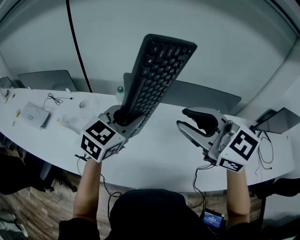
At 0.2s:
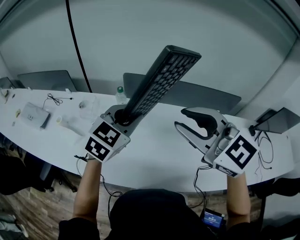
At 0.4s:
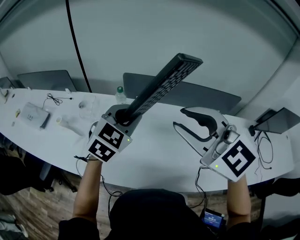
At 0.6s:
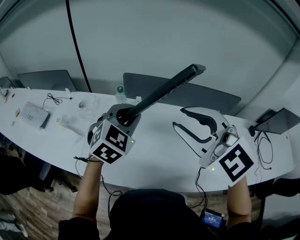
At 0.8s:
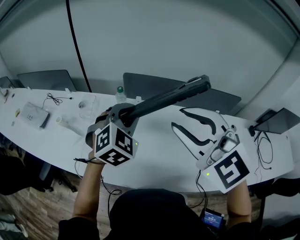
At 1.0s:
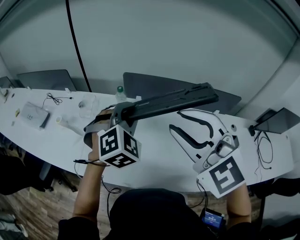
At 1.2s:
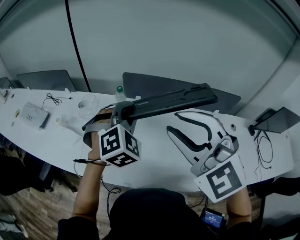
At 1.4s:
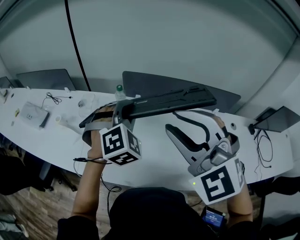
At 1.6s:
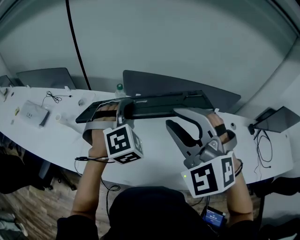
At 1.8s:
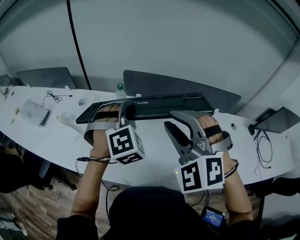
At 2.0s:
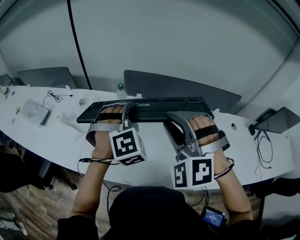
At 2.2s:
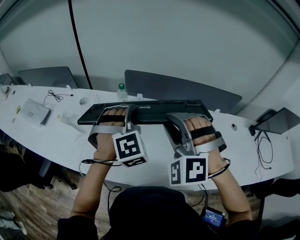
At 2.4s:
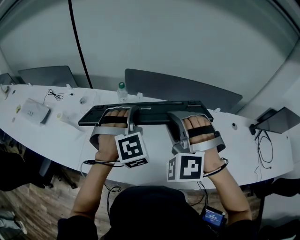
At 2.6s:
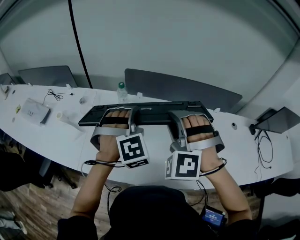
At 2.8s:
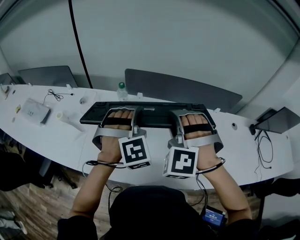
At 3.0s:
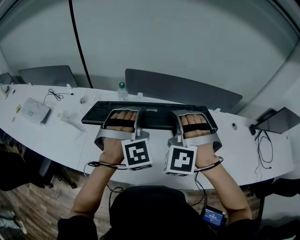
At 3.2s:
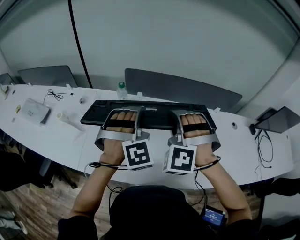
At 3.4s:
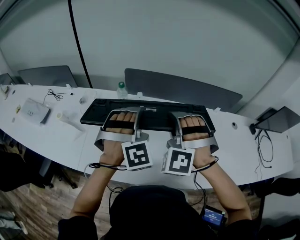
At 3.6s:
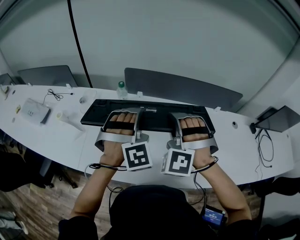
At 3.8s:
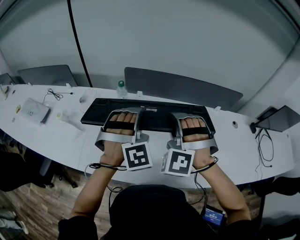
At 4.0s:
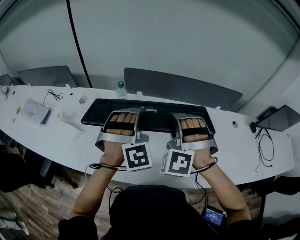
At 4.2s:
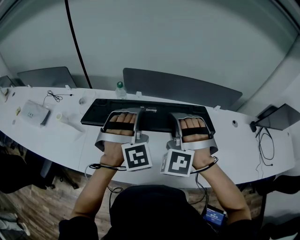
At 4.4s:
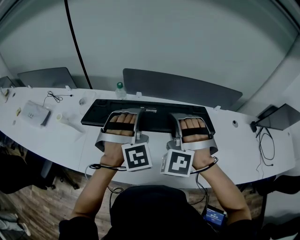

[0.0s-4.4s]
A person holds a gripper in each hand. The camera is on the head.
0.0s to 1.4s: The right gripper turns by about 40 degrees, while the left gripper swivels some 50 degrees.
1.4s to 3.0s: The right gripper heads downward and forward, covering roughly 15 cm, and swivels roughly 40 degrees.
3.0s to 4.4s: The grippers make only small movements.

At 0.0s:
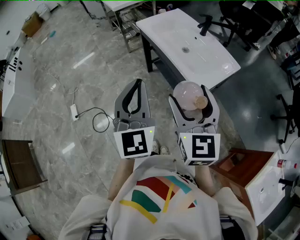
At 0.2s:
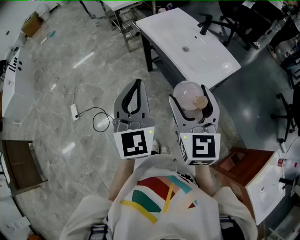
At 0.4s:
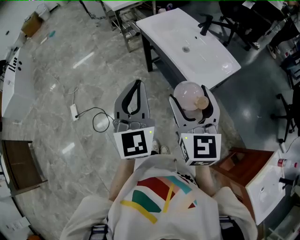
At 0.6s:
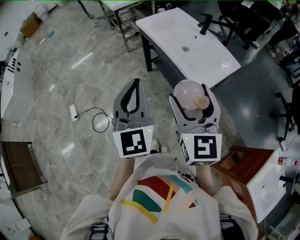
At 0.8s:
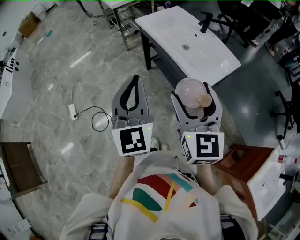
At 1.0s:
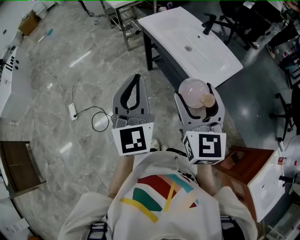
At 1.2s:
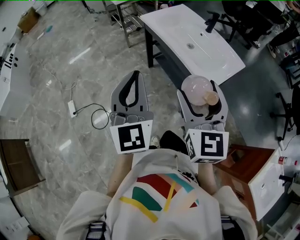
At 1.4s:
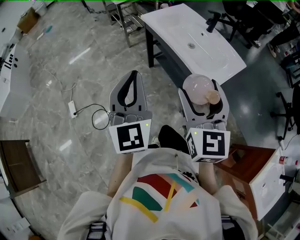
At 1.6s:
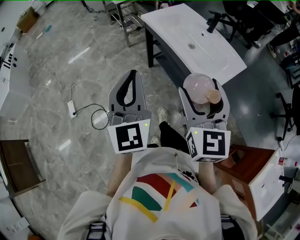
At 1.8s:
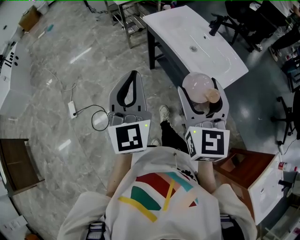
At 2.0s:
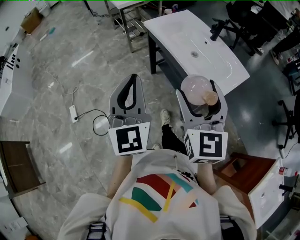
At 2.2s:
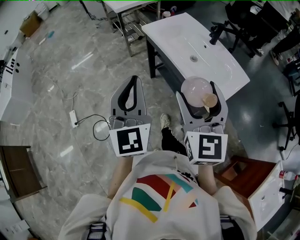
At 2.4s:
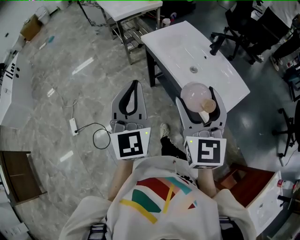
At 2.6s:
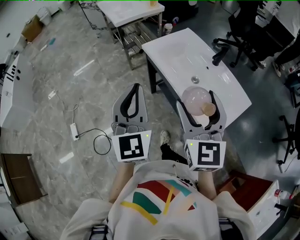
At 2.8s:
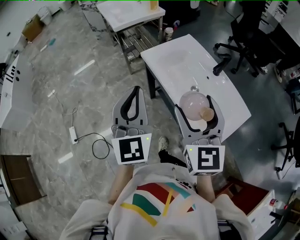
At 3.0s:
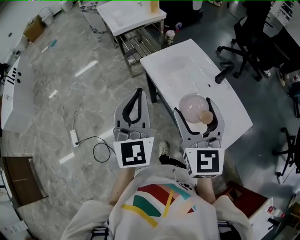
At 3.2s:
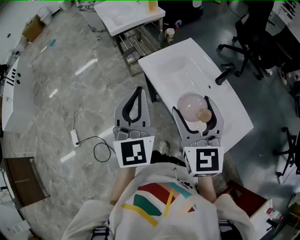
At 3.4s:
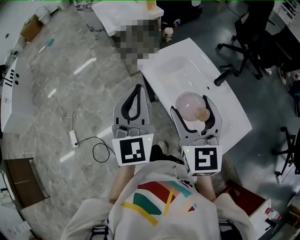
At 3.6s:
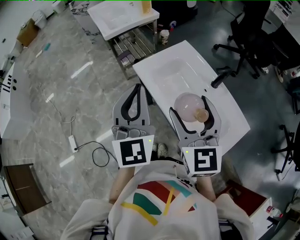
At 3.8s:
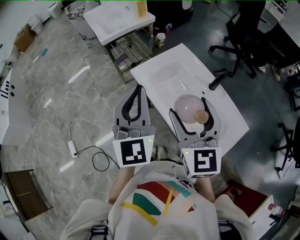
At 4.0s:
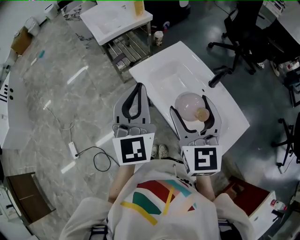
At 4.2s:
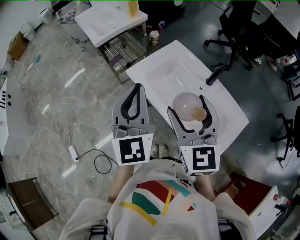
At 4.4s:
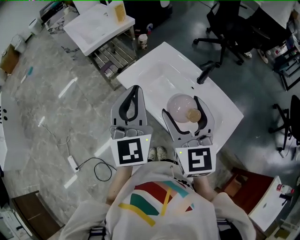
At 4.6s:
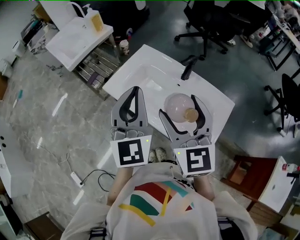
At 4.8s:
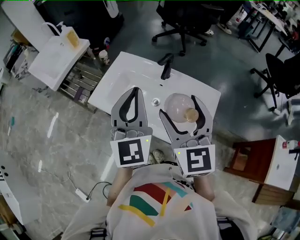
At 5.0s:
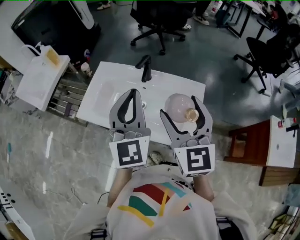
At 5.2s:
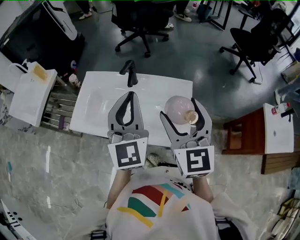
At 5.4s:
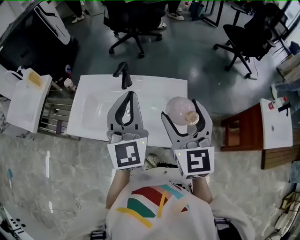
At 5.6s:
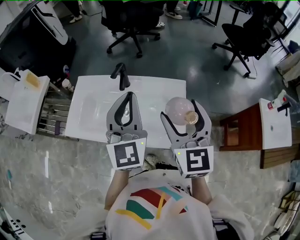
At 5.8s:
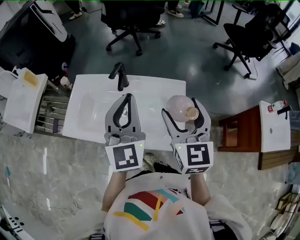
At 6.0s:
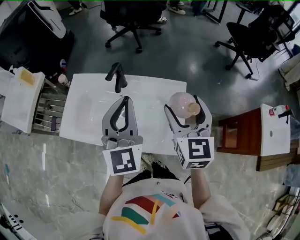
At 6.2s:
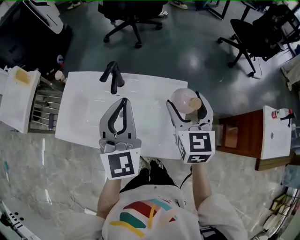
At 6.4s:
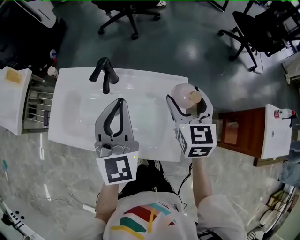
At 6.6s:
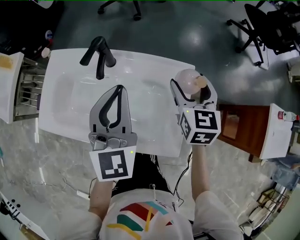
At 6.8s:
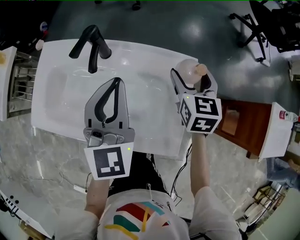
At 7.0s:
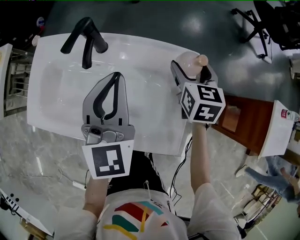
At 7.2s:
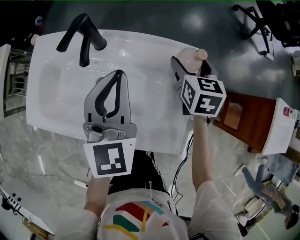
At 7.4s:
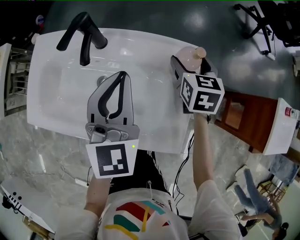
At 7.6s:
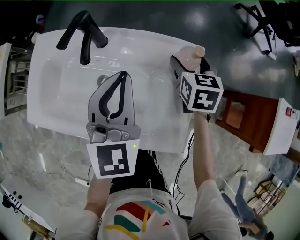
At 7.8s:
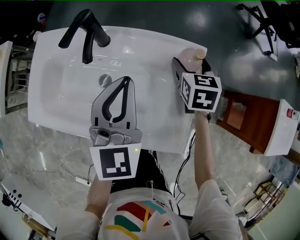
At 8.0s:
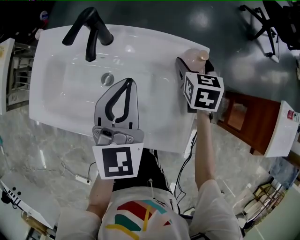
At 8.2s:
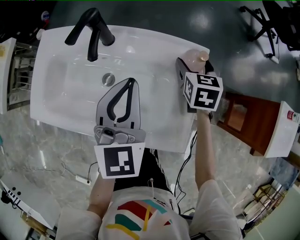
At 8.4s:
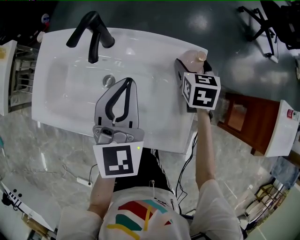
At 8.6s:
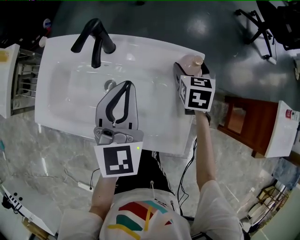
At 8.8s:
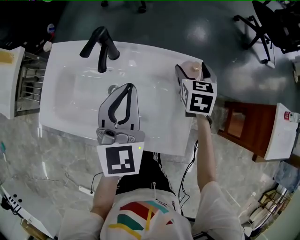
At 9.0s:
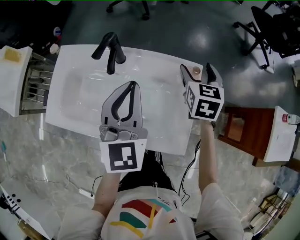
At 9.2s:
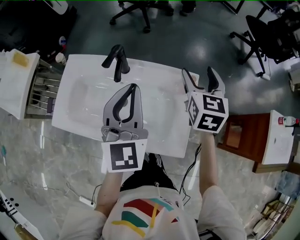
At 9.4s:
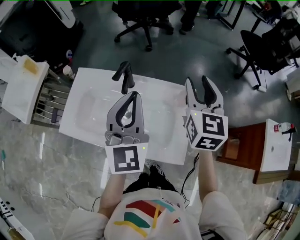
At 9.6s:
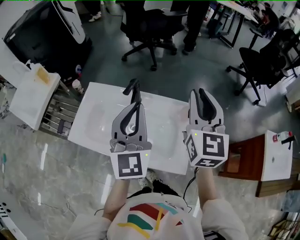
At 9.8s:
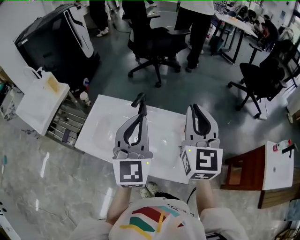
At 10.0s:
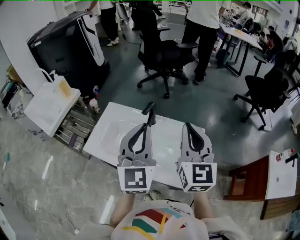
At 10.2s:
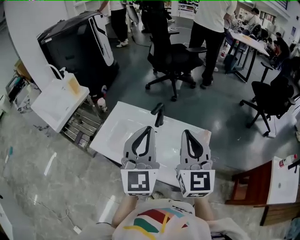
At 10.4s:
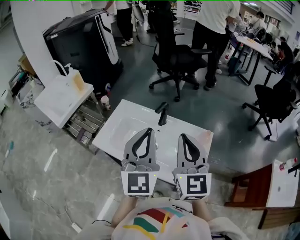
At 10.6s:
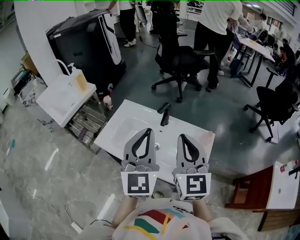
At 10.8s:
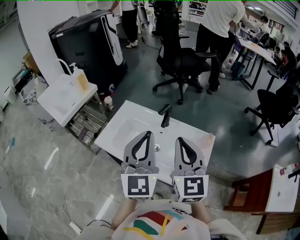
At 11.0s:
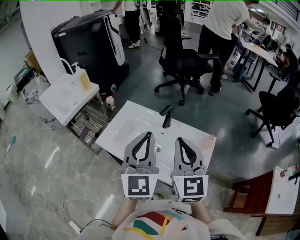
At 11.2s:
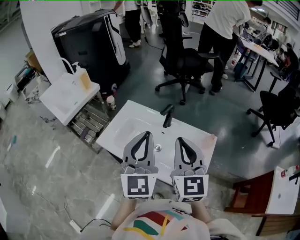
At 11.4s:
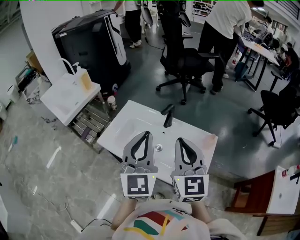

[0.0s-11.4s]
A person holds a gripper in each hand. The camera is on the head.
0.0s to 1.4s: The left gripper heads to the left, covering approximately 5 cm.
1.4s to 2.8s: The grippers both shift forward by some 25 cm.
2.8s to 4.2s: The grippers both shift forward by roughly 10 cm.
4.2s to 5.6s: The right gripper changes place by approximately 20 cm, and changes its angle by about 50 degrees. Meanwhile the left gripper changes place by about 25 cm, and turns by about 40 degrees.
5.6s to 7.2s: The left gripper is displaced downward and forward by roughly 20 cm. The right gripper is displaced downward and forward by approximately 35 cm, and turns by approximately 30 degrees.
7.2s to 8.6s: The grippers move only a little.
8.6s to 10.0s: The left gripper is displaced upward by approximately 20 cm, and changes its angle by roughly 20 degrees. The right gripper shifts about 40 cm upward and backward, tilts its fingers roughly 40 degrees upward, and closes its fingers.
10.0s to 11.4s: The two grippers go approximately 5 cm to the left.

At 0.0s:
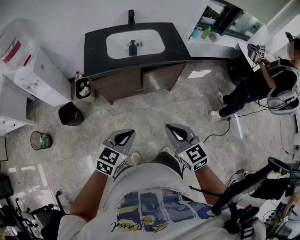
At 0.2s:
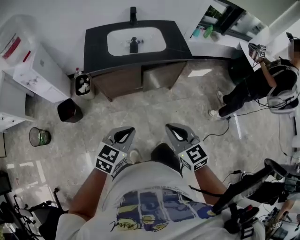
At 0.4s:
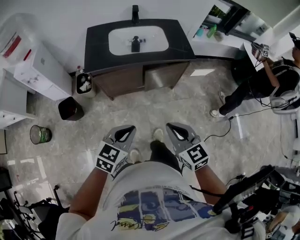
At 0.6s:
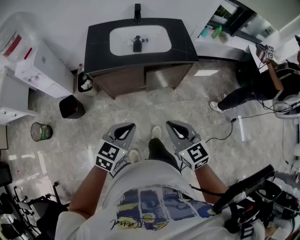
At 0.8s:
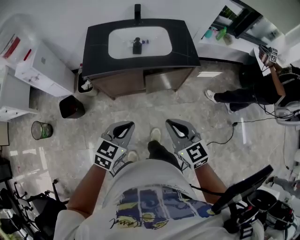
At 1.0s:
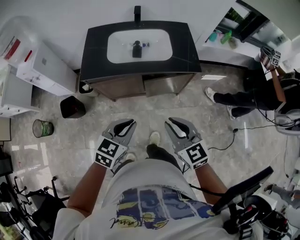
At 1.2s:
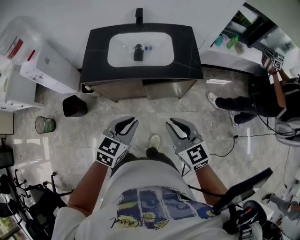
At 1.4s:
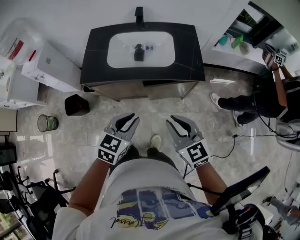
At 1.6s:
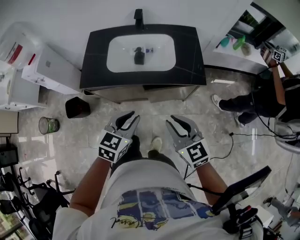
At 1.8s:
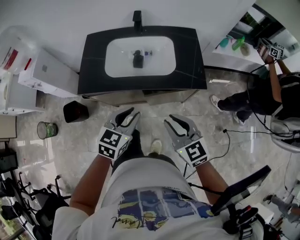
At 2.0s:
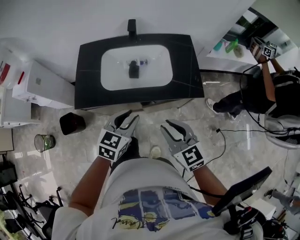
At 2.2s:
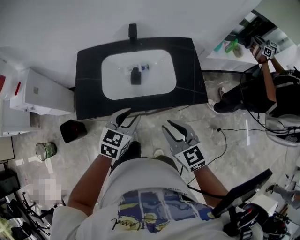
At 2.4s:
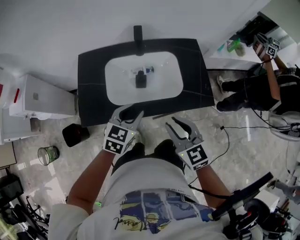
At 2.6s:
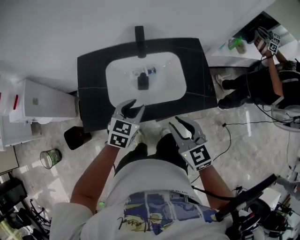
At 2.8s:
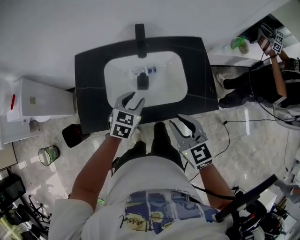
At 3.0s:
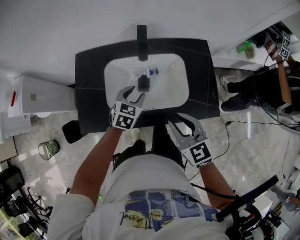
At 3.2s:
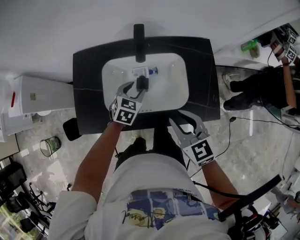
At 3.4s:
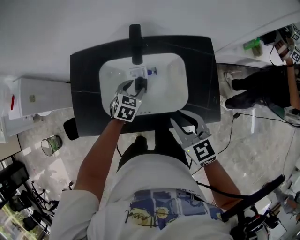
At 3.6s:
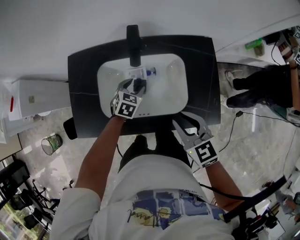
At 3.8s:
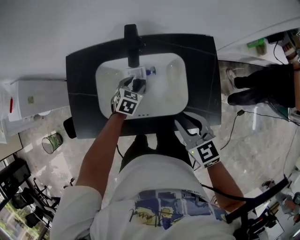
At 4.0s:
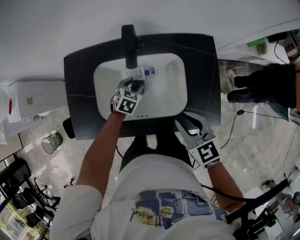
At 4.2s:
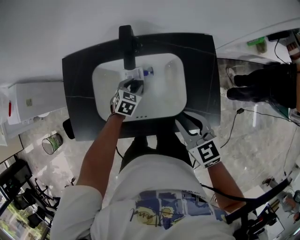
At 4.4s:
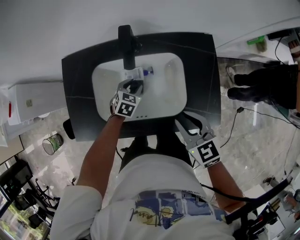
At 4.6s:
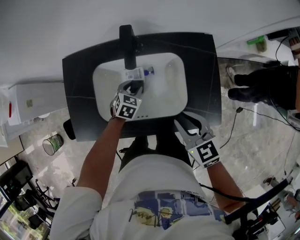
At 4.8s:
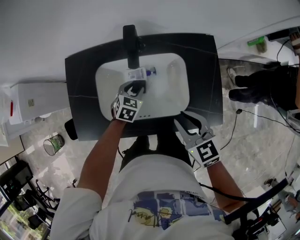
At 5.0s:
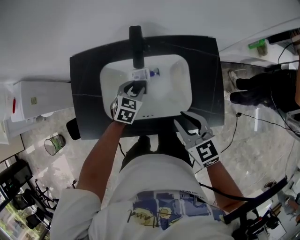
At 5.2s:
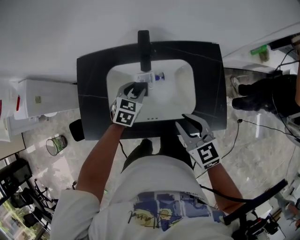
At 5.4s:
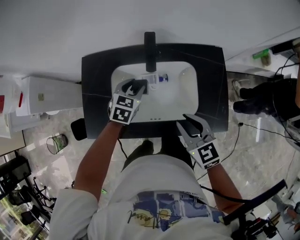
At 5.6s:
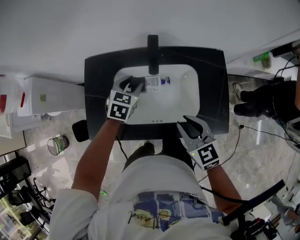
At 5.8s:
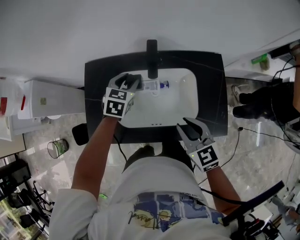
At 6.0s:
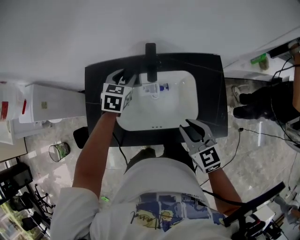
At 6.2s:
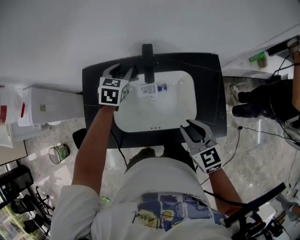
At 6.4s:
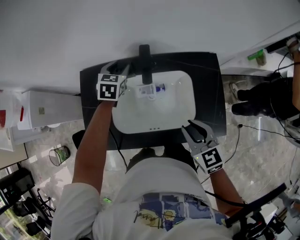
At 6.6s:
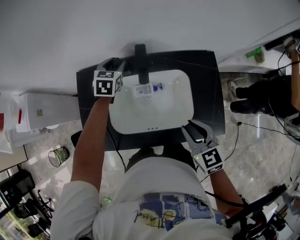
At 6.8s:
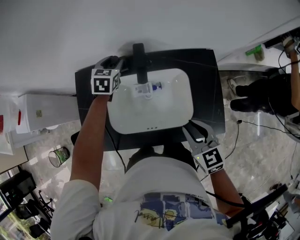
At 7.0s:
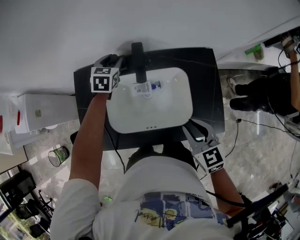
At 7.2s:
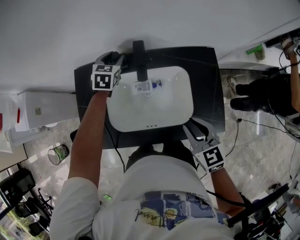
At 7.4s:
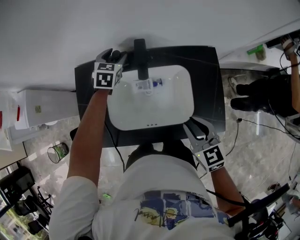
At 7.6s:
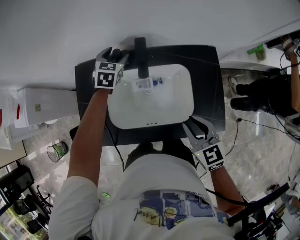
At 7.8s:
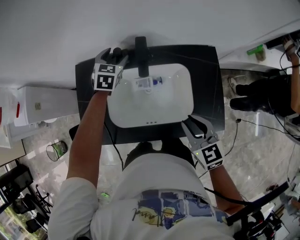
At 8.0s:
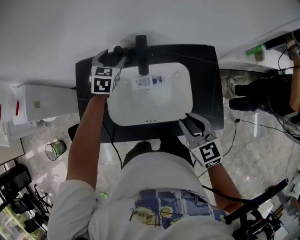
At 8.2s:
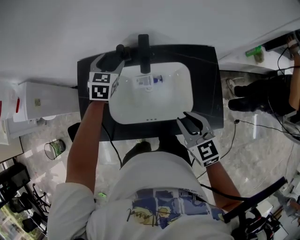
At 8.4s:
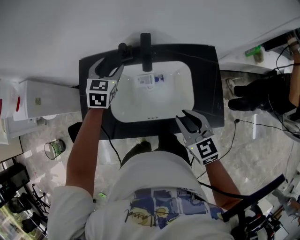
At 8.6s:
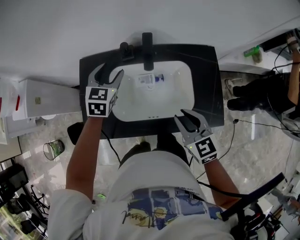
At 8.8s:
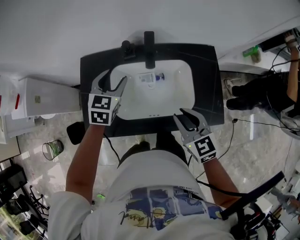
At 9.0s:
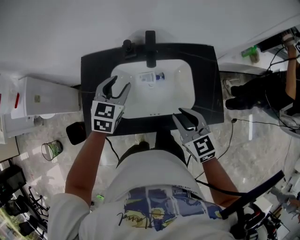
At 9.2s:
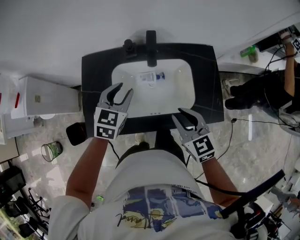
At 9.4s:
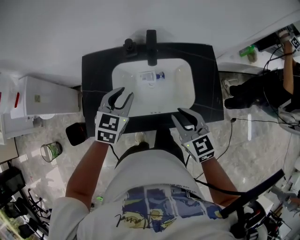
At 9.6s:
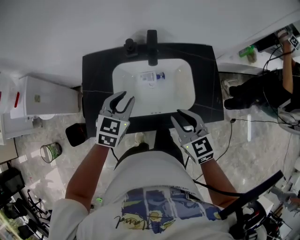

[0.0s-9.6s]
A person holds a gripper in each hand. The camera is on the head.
0.0s to 1.6s: Both grippers travel together forward, approximately 25 cm.
1.6s to 3.2s: The left gripper heads forward and downward, covering about 40 cm, and opens its fingers. Meanwhile the right gripper moves forward, some 25 cm.
3.2s to 4.8s: The right gripper changes place by roughly 5 cm. Meanwhile the left gripper heads downward, covering some 5 cm.
4.8s to 6.4s: The left gripper travels forward, upward and to the left by about 25 cm.
6.4s to 8.0s: The left gripper opens its fingers.
8.0s to 9.6s: The left gripper goes approximately 25 cm backward, and closes, while the right gripper is displaced to the left by some 5 cm.
